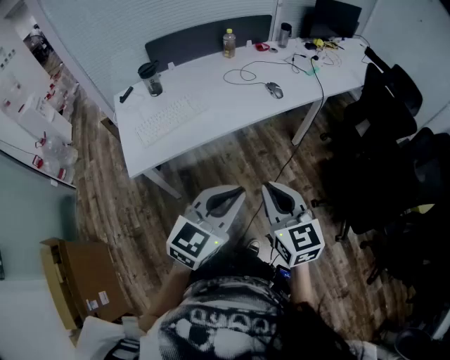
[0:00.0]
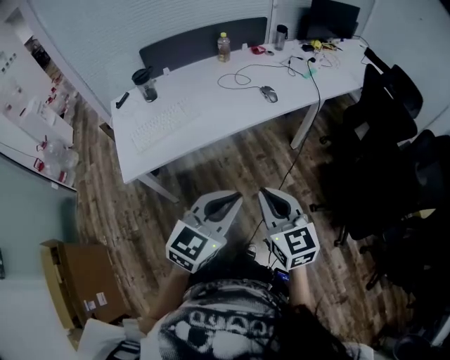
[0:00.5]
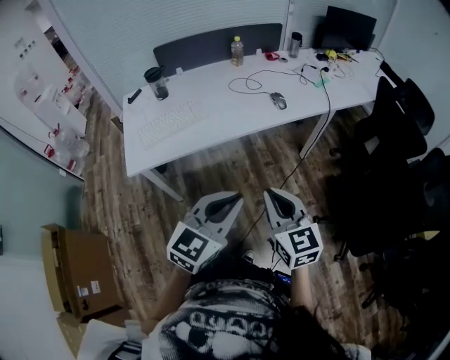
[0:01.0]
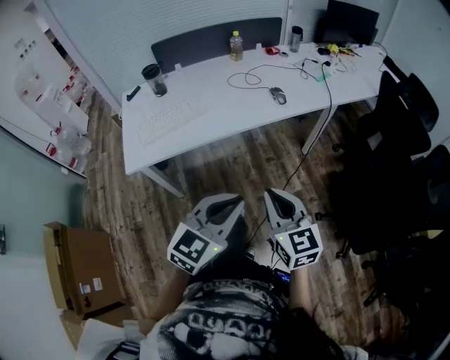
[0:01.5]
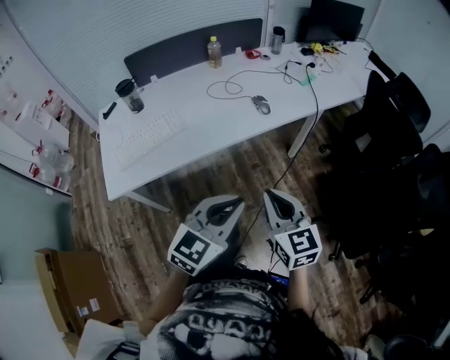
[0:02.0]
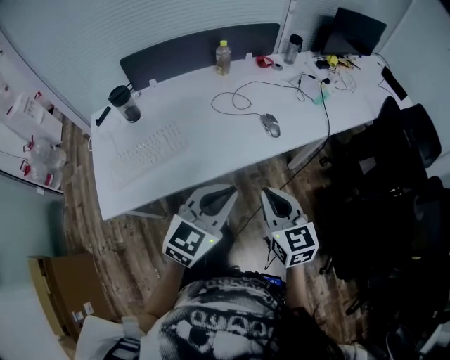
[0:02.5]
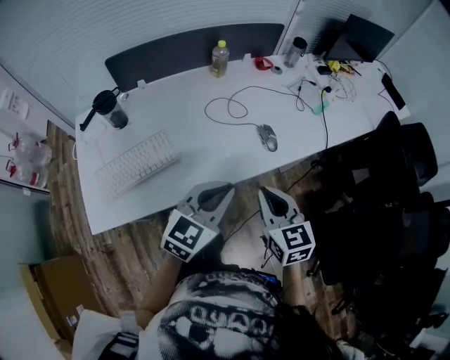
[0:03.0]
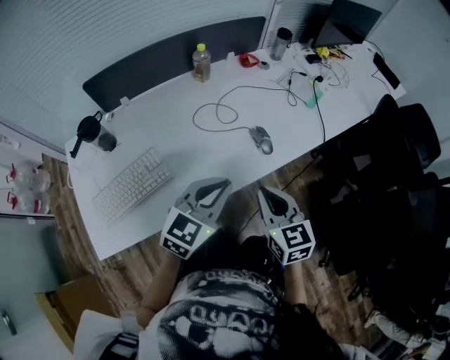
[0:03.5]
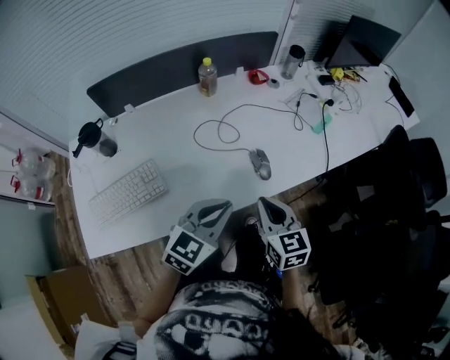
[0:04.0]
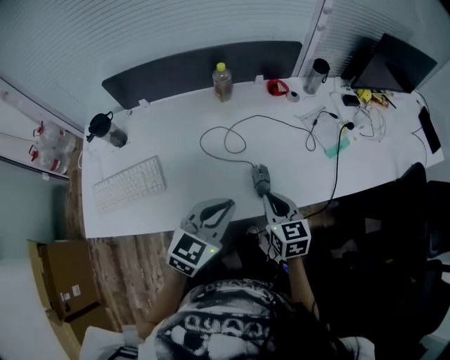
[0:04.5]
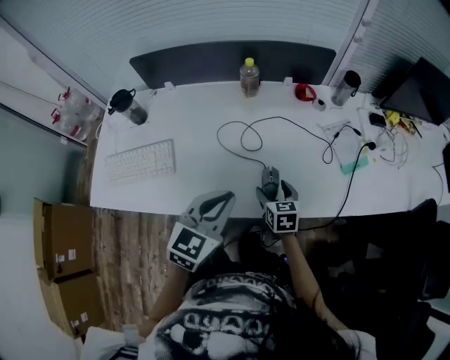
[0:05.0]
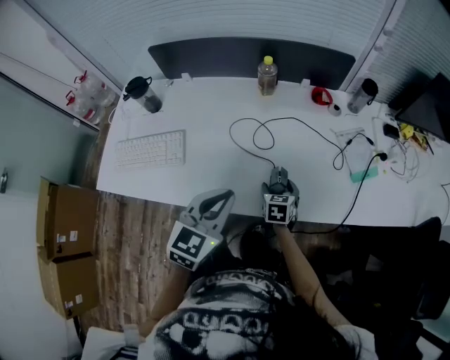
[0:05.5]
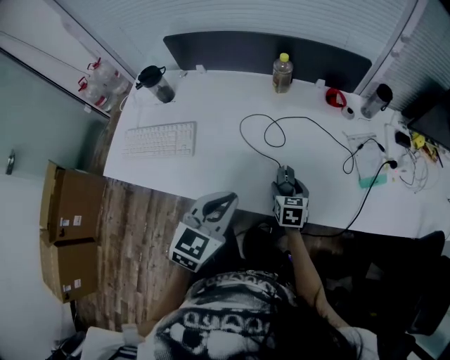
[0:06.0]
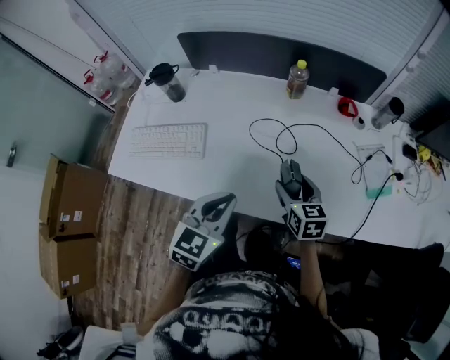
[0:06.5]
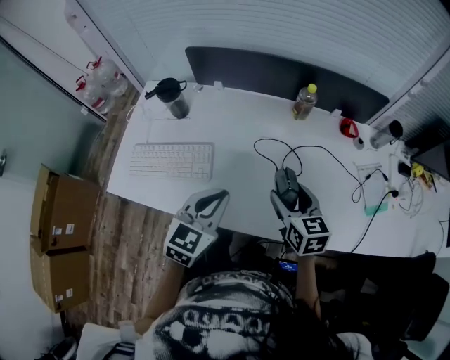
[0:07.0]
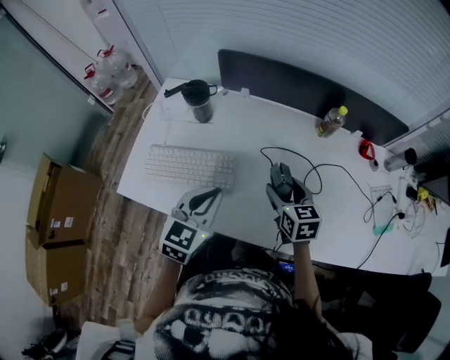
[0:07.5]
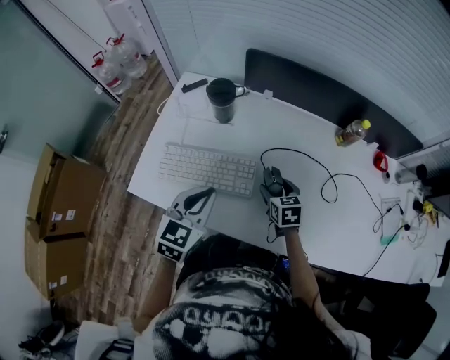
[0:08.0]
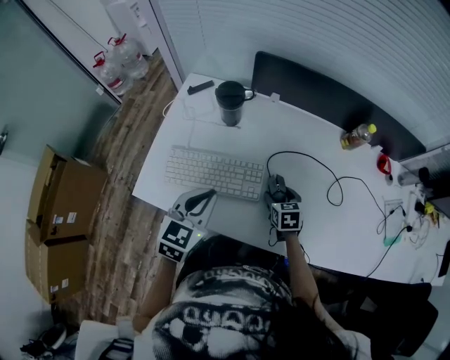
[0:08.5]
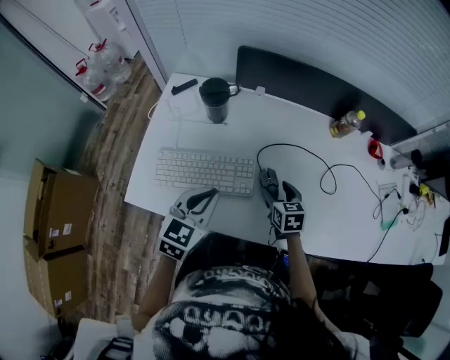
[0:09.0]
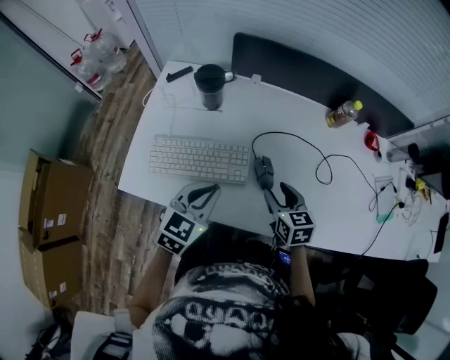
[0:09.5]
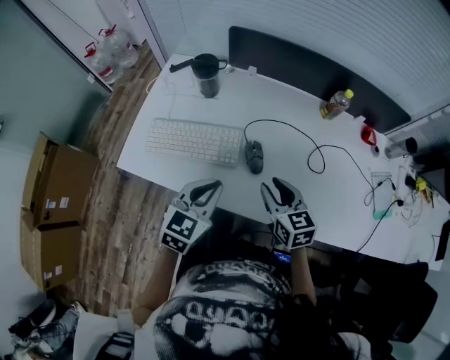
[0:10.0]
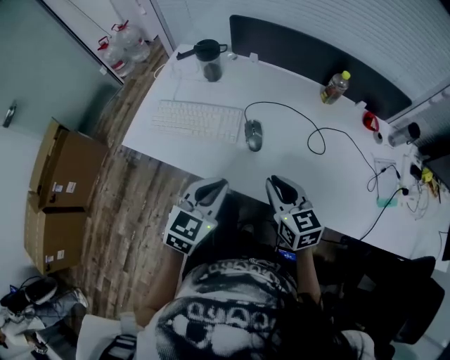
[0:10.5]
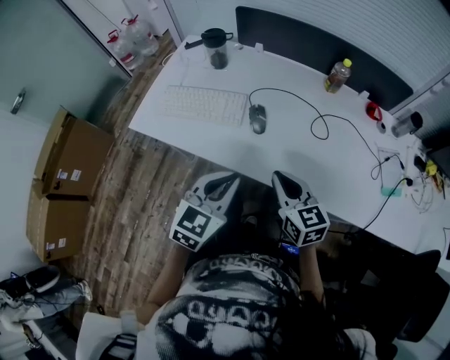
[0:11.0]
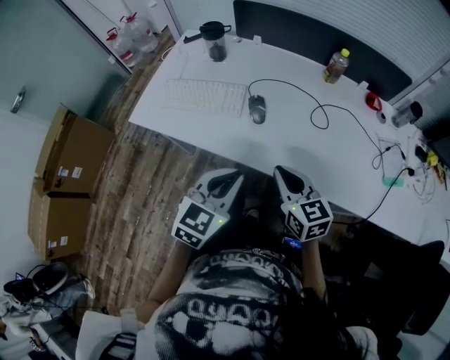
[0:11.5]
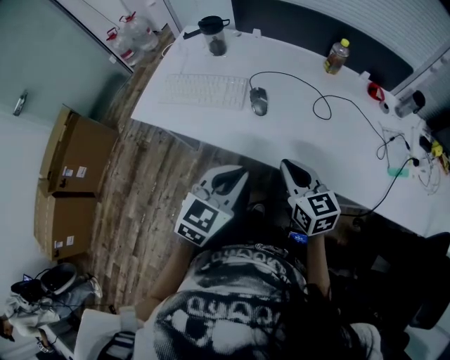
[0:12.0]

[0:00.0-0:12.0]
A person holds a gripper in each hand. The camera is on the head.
0:00.0 to 0:02.0: The right gripper shifts approximately 15 cm forward, to the right and downward; the left gripper heads forward and to the right, covering roughly 15 cm.
0:02.0 to 0:04.0: Both grippers travel together forward, approximately 35 cm.
0:04.0 to 0:06.0: The left gripper swivels some 40 degrees. Meanwhile the right gripper is displaced downward by roughly 20 cm, changes its angle by approximately 20 degrees, and opens up.
0:06.0 to 0:08.0: The left gripper is displaced to the left by about 35 cm; the right gripper moves to the left and forward, some 35 cm.
0:08.0 to 0:10.0: The right gripper shifts some 15 cm upward and backward, and closes; the left gripper moves to the right and backward, approximately 10 cm.
0:10.0 to 0:12.0: The left gripper shifts some 20 cm backward and to the right, while the right gripper is displaced backward by some 15 cm, and closes up.
